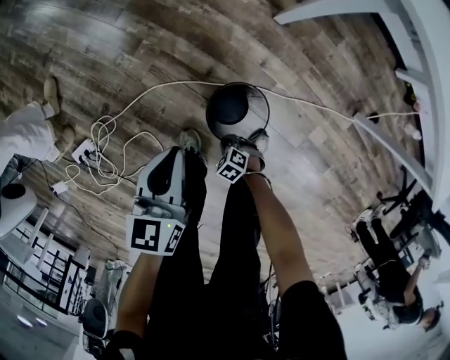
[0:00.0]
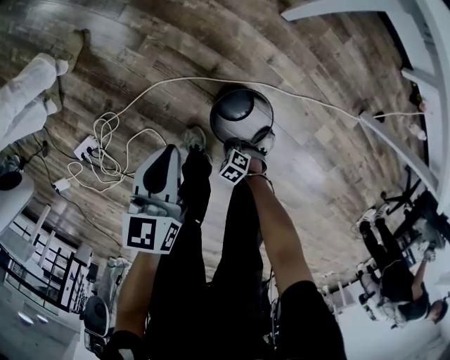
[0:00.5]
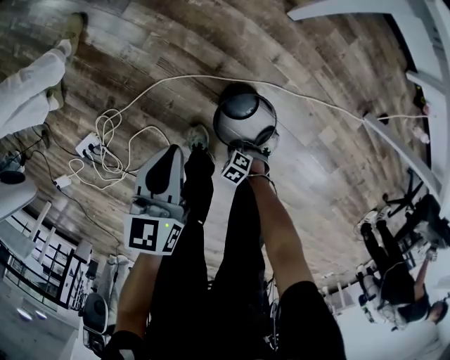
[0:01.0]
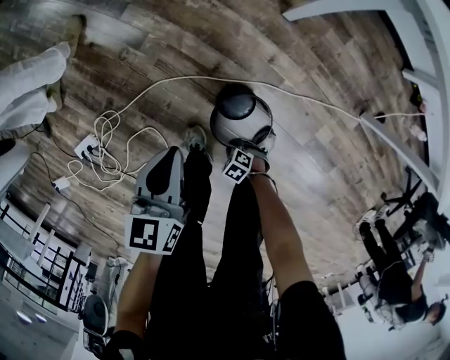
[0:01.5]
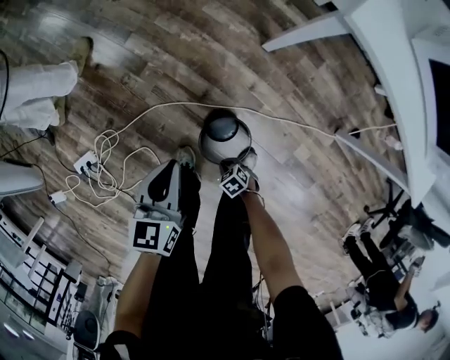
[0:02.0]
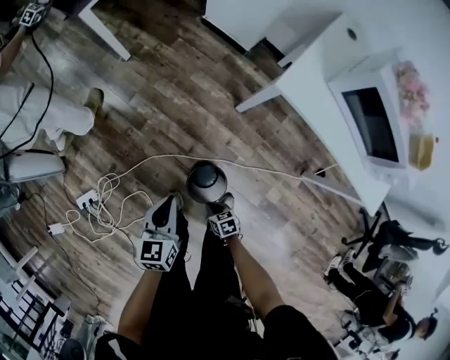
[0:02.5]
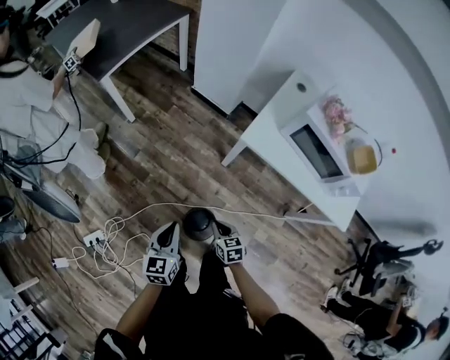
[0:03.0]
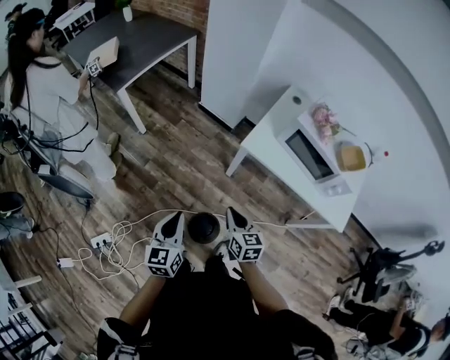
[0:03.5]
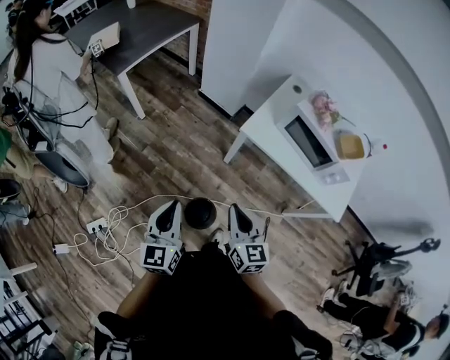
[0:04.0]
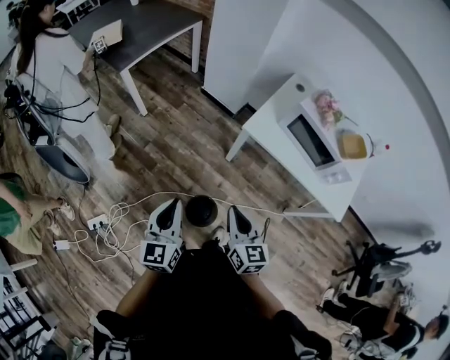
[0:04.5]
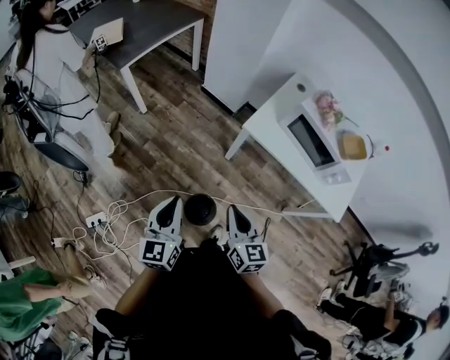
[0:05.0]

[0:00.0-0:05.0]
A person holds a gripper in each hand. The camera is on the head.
0:00.0 to 0:02.5: Both grippers travel together upward, about 20 cm. The right gripper changes its angle by approximately 40 degrees.
0:02.5 to 0:05.0: The right gripper travels upward by some 50 cm, and angles its fingers upward, by some 40 degrees. Meanwhile the left gripper moves upward, roughly 30 cm, and changes its angle by roughly 20 degrees.

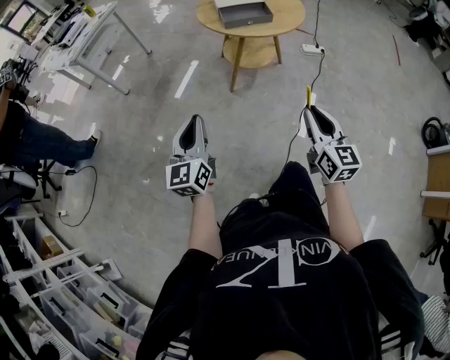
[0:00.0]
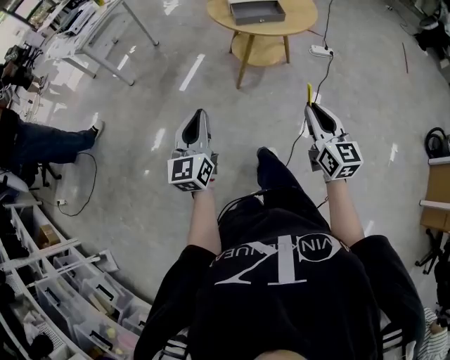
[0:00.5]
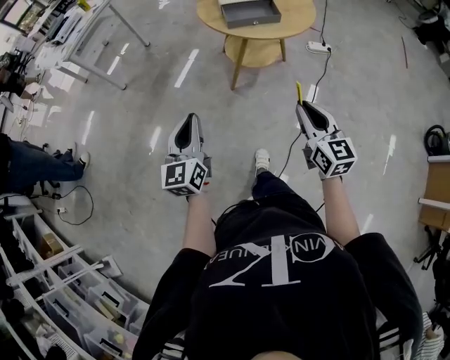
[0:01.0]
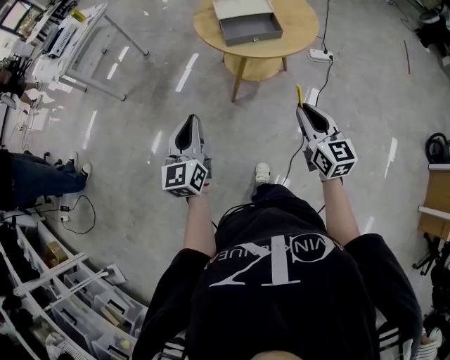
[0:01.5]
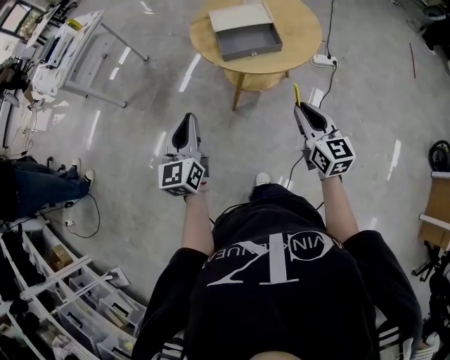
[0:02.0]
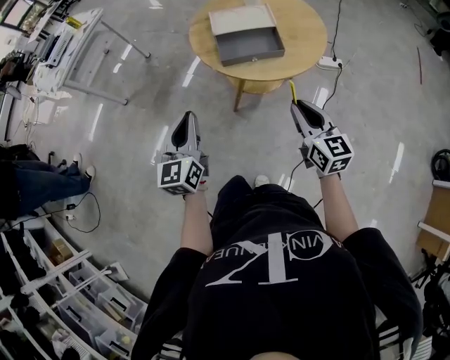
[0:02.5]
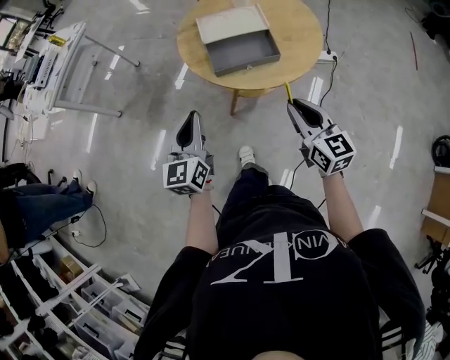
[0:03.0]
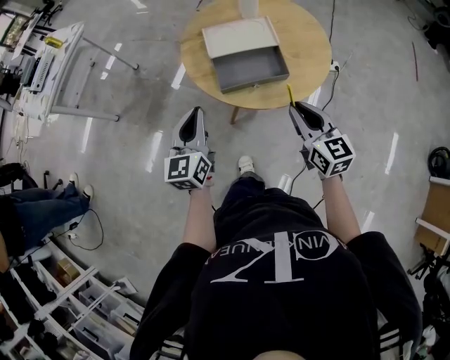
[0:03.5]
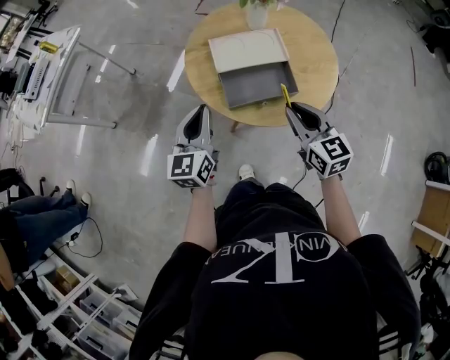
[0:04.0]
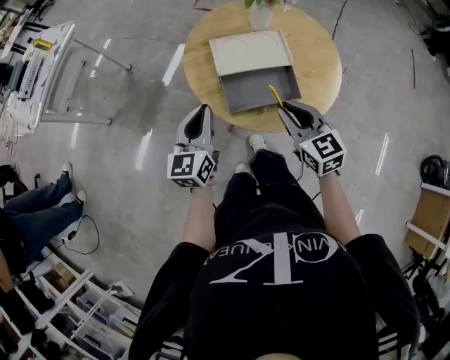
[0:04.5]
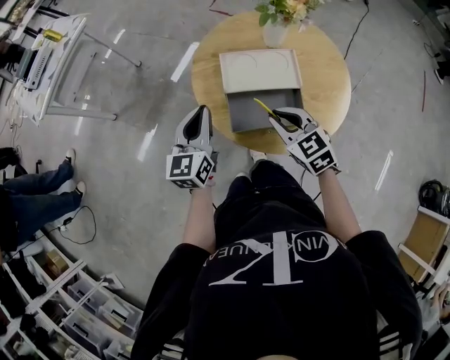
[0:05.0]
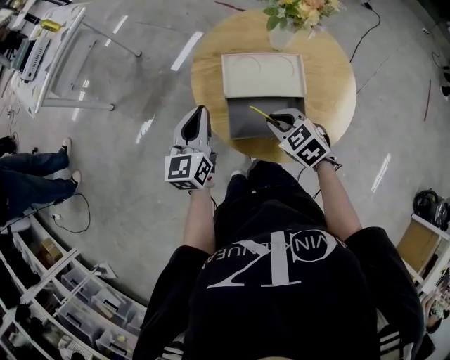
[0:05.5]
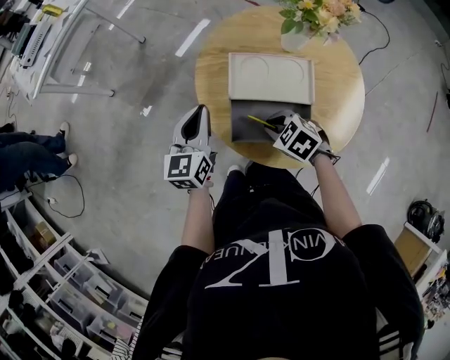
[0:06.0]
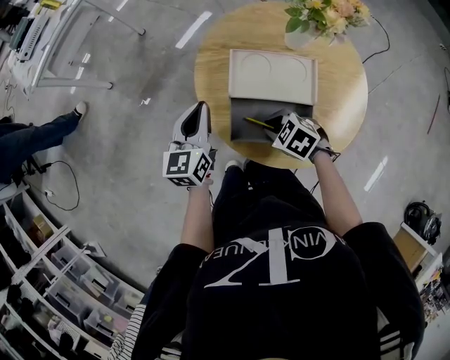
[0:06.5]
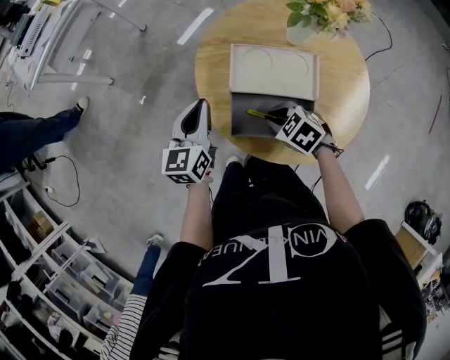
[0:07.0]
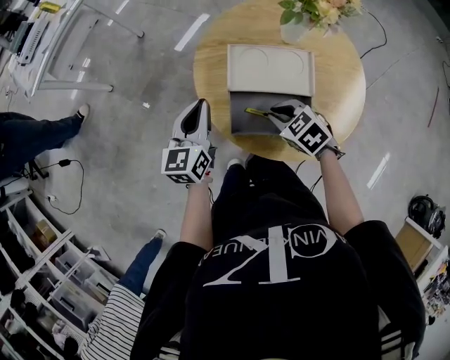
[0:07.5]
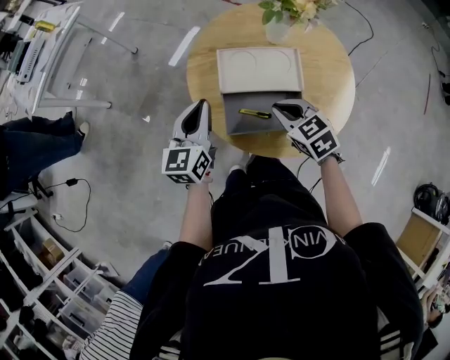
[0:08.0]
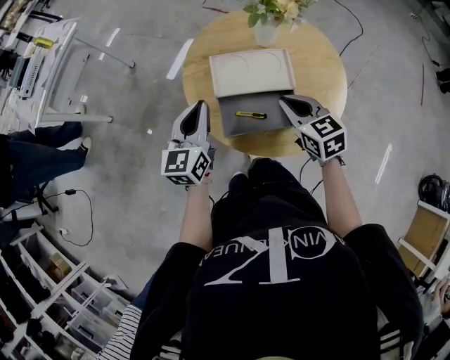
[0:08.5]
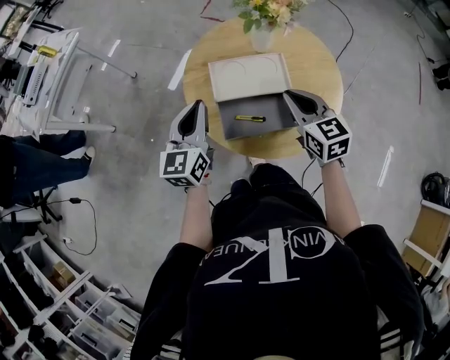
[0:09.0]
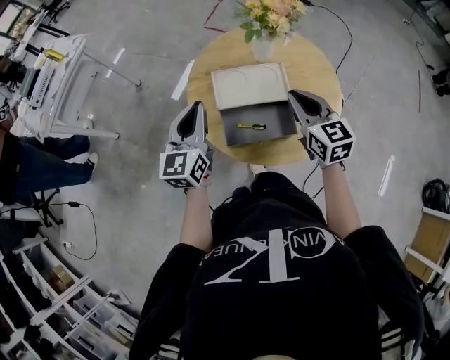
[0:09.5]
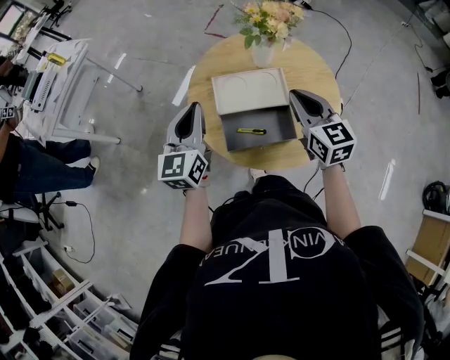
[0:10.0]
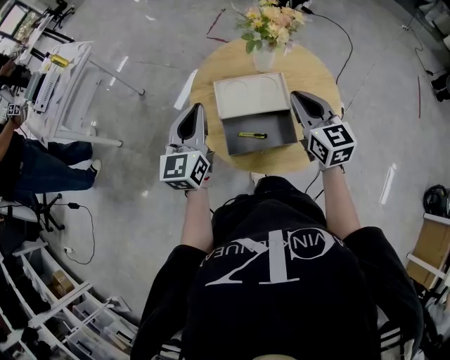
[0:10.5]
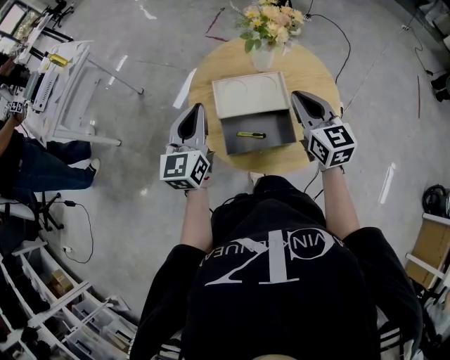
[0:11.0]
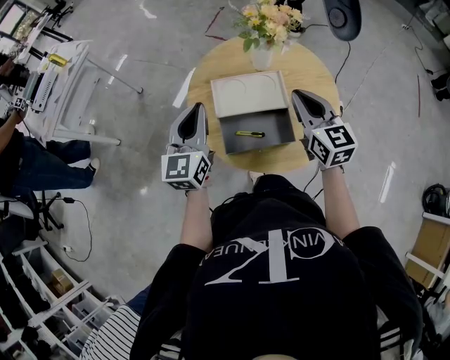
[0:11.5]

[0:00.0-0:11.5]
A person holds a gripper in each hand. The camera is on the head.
0:00.0 to 0:02.0: Both grippers move forward, some 30 cm.
0:02.0 to 0:04.0: The two grippers go about 25 cm forward.
0:04.0 to 0:06.0: The left gripper changes place by about 15 cm, while the right gripper shifts approximately 15 cm downward, and points its fingers some 40 degrees further downward.
0:06.0 to 0:07.5: The grippers make only small movements.
0:07.5 to 0:09.5: The left gripper shifts approximately 10 cm upward. Meanwhile the right gripper moves upward, some 15 cm, and tips its fingers upward by about 40 degrees.
0:09.5 to 0:11.5: There are only small adjustments of the grippers.

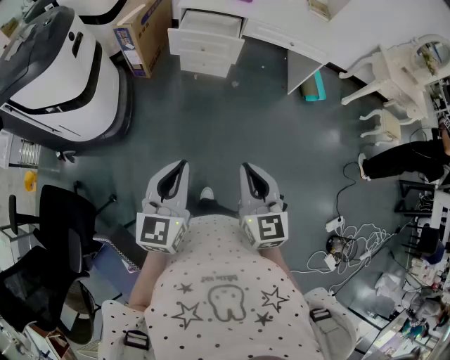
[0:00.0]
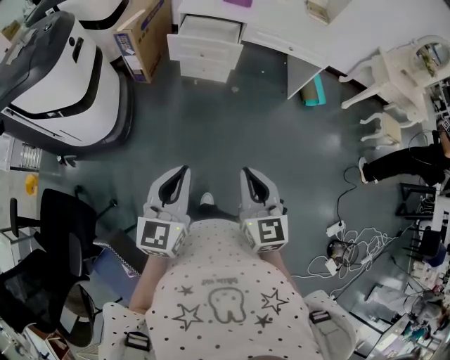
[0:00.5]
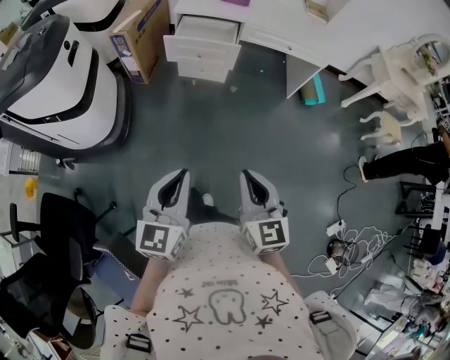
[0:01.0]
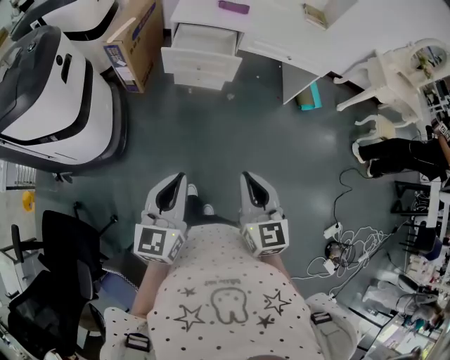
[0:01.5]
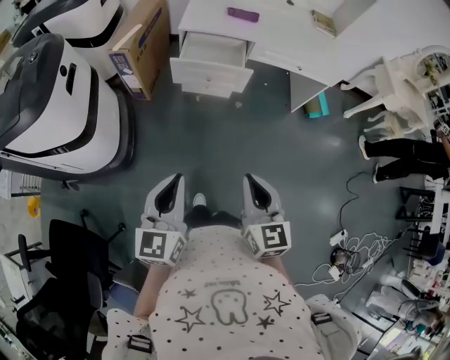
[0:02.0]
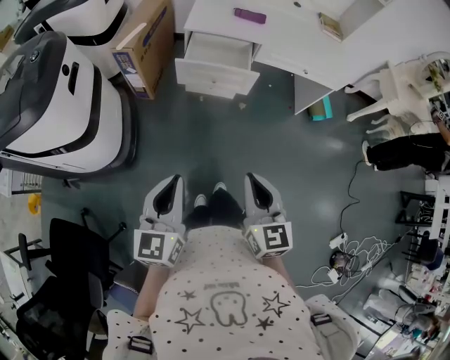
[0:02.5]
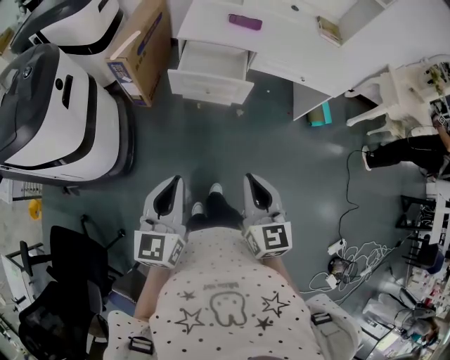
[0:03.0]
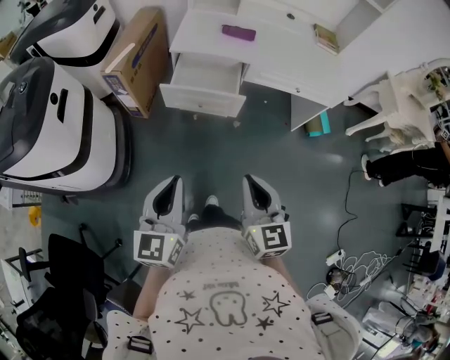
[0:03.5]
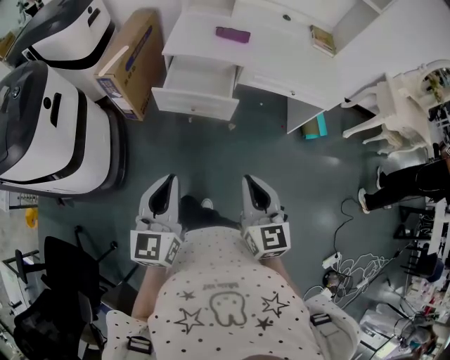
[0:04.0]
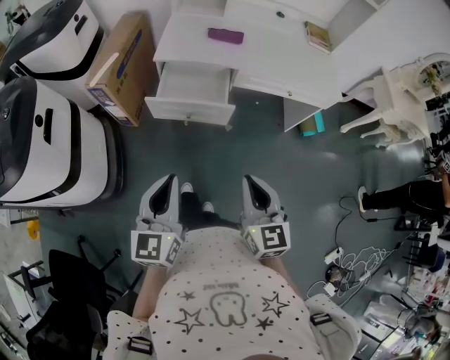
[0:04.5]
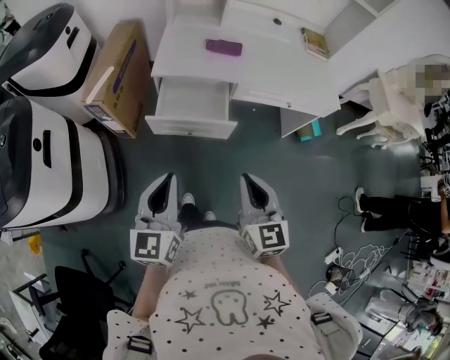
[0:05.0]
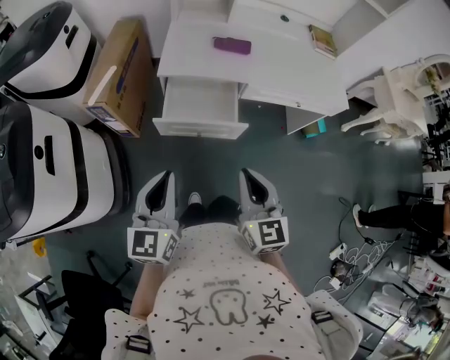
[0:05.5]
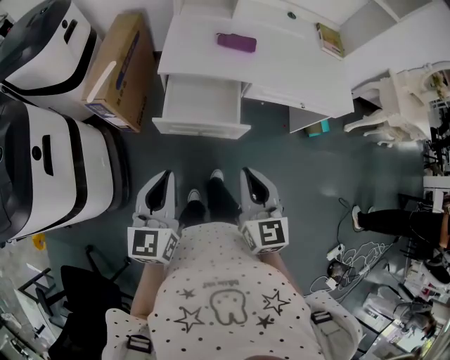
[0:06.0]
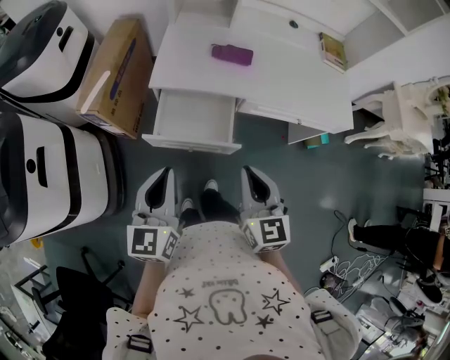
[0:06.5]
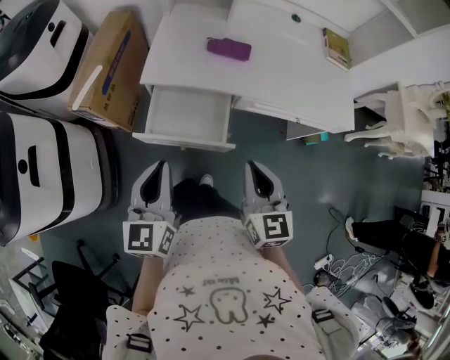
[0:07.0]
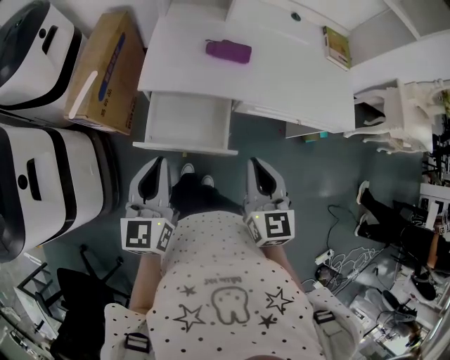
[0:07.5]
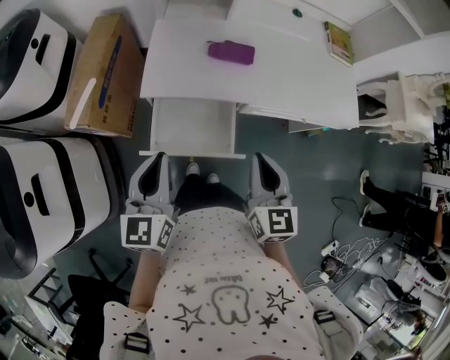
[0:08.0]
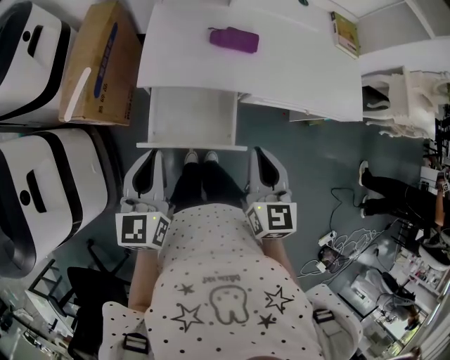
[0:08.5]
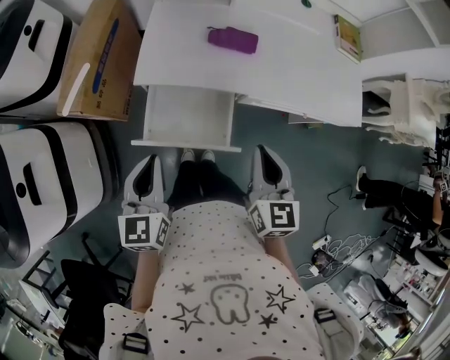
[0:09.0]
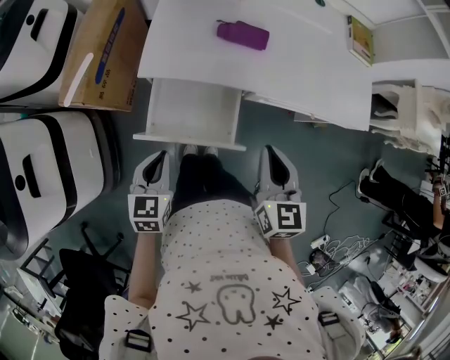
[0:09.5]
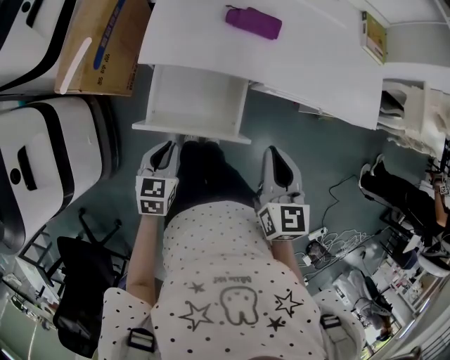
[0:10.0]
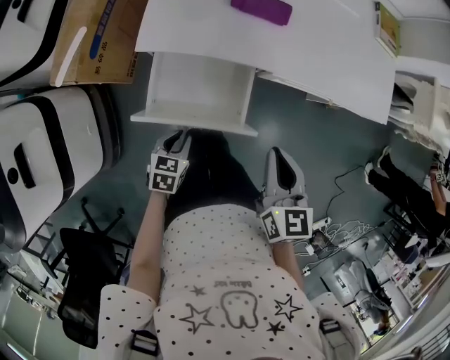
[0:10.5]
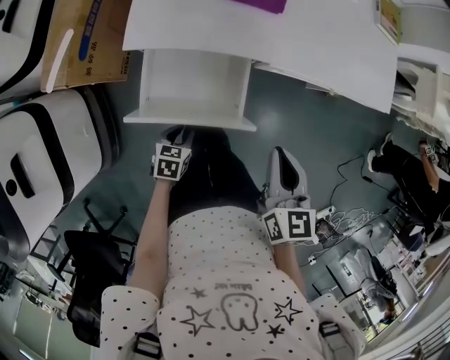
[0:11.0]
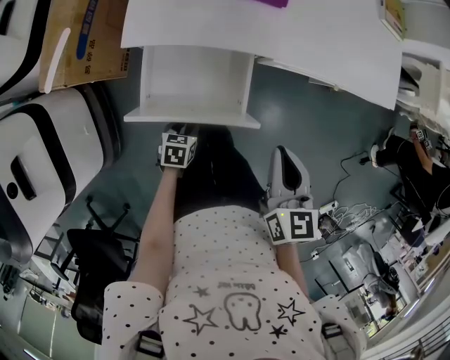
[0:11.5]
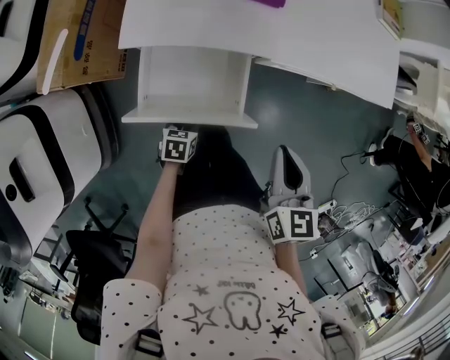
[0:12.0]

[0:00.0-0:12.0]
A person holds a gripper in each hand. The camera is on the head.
0:00.0 to 0:02.0: The left gripper is displaced forward and to the left by roughly 15 cm. Meanwhile the right gripper travels forward by roughly 15 cm.
0:02.0 to 0:04.0: Both grippers travel together forward and to the right, about 15 cm.
0:04.0 to 0:06.0: The right gripper shifts about 20 cm forward and to the left. Meanwhile the left gripper moves forward, some 20 cm.
0:06.0 to 0:08.0: Both grippers move forward, approximately 20 cm.
0:08.0 to 0:10.0: The right gripper ends up about 5 cm from where it was. The left gripper moves downward, about 20 cm, and points its fingers about 30 degrees further downward.
0:10.0 to 0:12.0: The left gripper is displaced downward by some 20 cm, changes its angle by some 20 degrees, and opens up.
